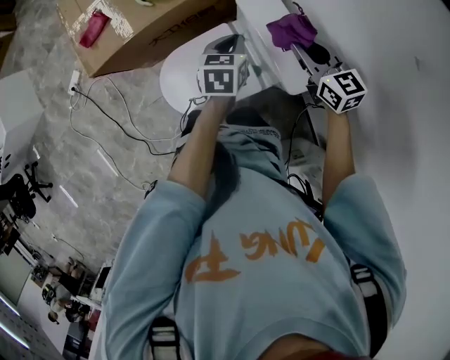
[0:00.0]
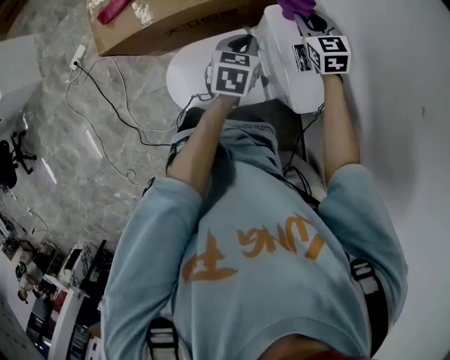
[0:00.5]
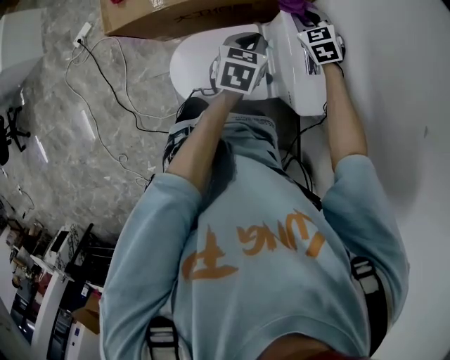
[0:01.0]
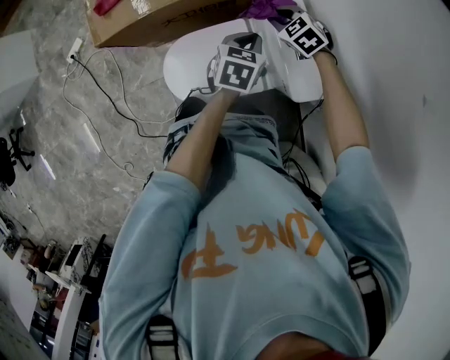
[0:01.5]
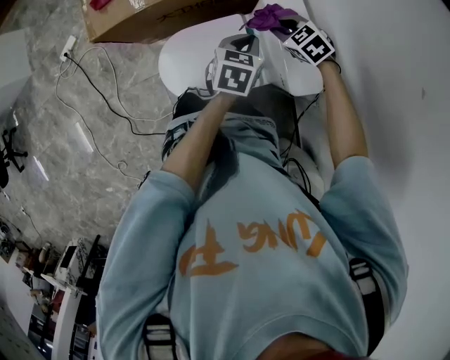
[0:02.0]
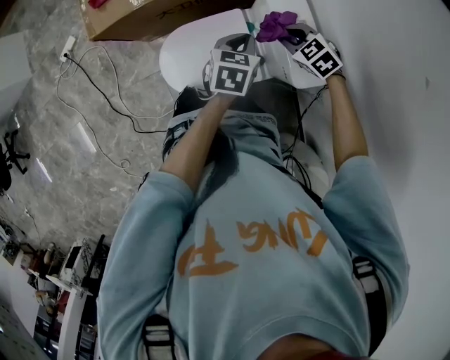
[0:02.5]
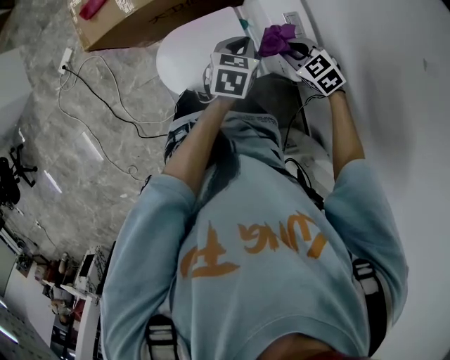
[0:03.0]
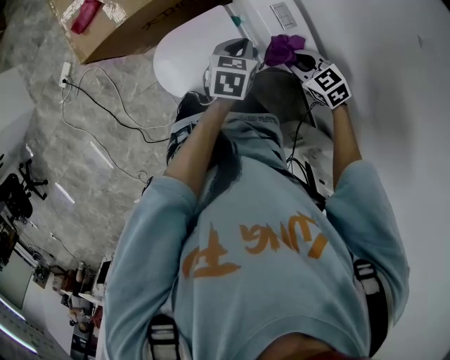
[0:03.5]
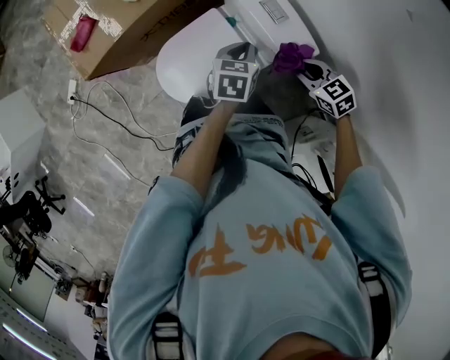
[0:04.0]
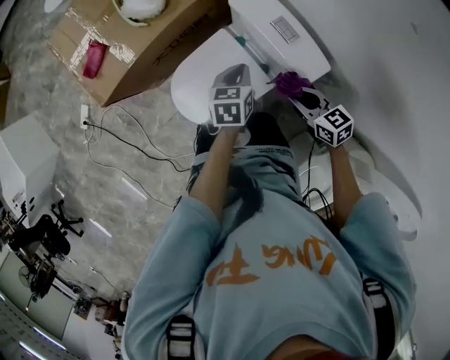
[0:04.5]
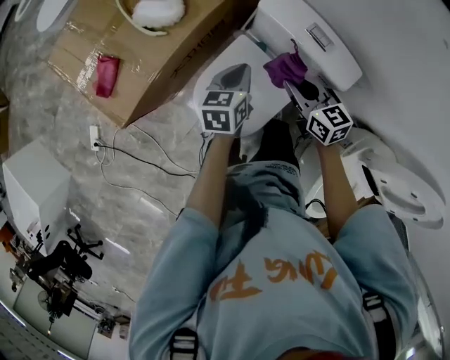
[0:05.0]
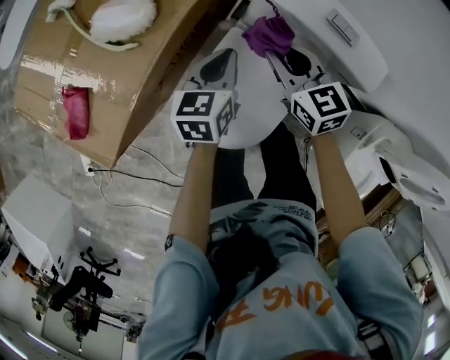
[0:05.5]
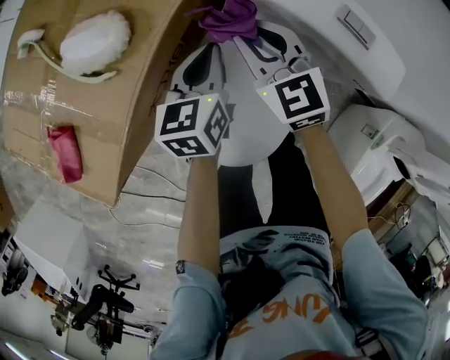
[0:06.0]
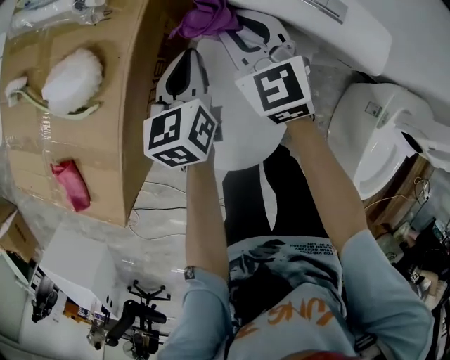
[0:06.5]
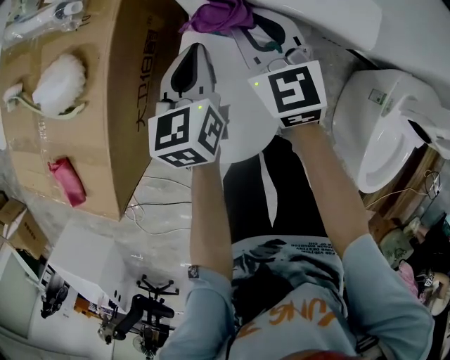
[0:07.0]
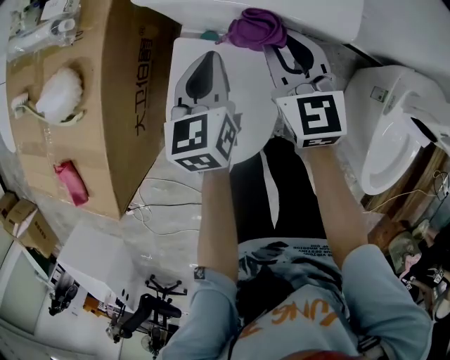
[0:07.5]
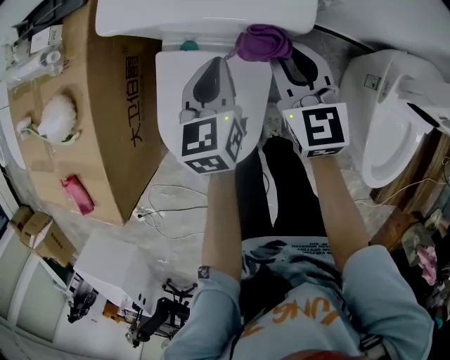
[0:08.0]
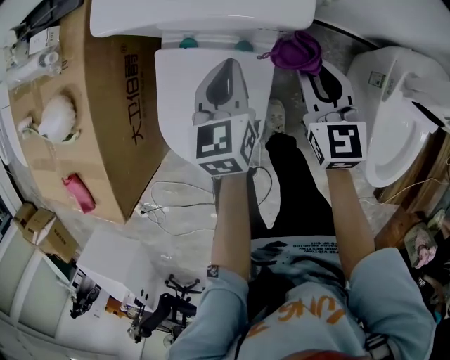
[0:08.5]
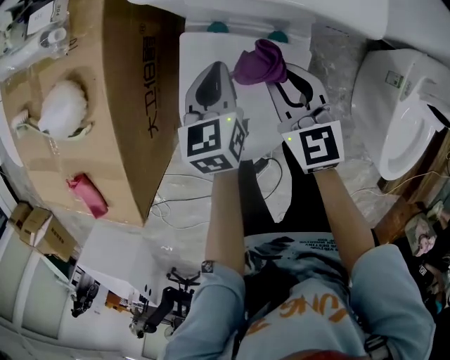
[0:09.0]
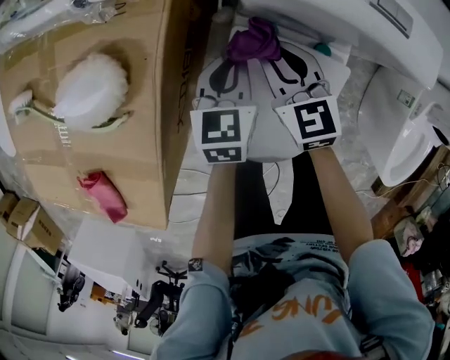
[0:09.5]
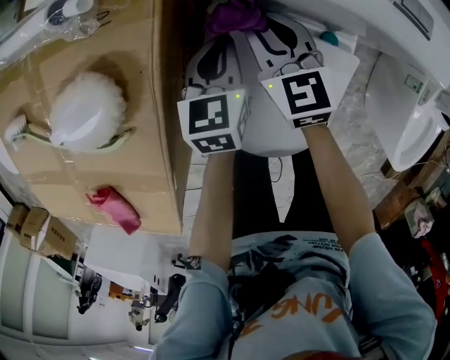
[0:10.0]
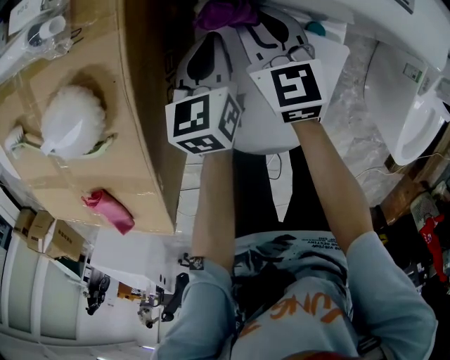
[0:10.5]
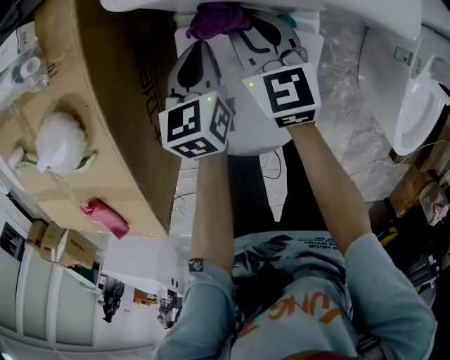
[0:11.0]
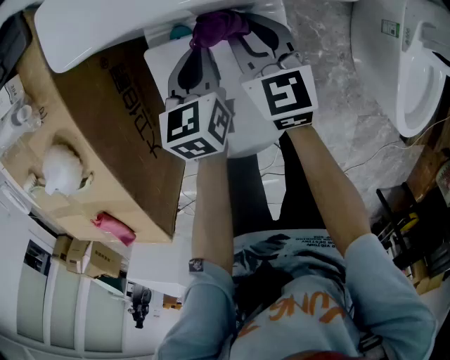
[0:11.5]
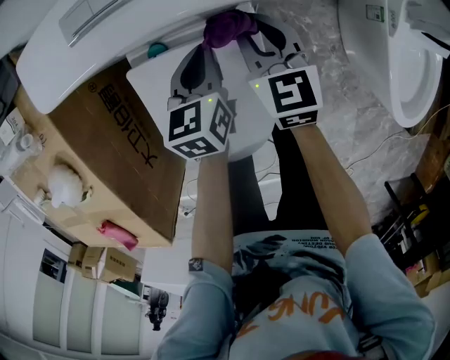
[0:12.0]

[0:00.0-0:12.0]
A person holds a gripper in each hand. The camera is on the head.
0:00.0 to 0:02.0: The right gripper travels downward and to the left by approximately 15 cm, travels forward and back again, about 15 cm each way, and tips its fingers downward by approximately 40 degrees.
0:02.0 to 0:04.0: The right gripper goes some 20 cm backward, and turns by approximately 30 degrees. Meanwhile the left gripper heads backward, covering some 10 cm.
0:04.0 to 0:06.0: The left gripper moves some 25 cm, and rotates roughly 20 degrees. The right gripper ends up roughly 35 cm from where it was, and swivels some 40 degrees.
0:06.0 to 0:08.0: The two grippers go approximately 25 cm to the right. The right gripper swivels approximately 40 degrees.
0:08.0 to 0:10.0: Both grippers travel together to the left and downward, roughly 30 cm.
0:10.0 to 0:12.0: Both grippers move to the right, approximately 30 cm. The right gripper rotates roughly 20 degrees.

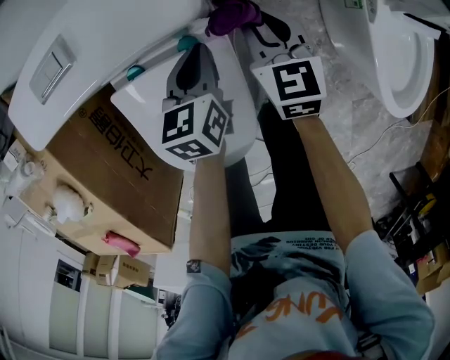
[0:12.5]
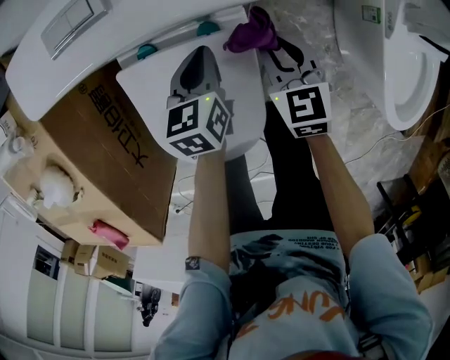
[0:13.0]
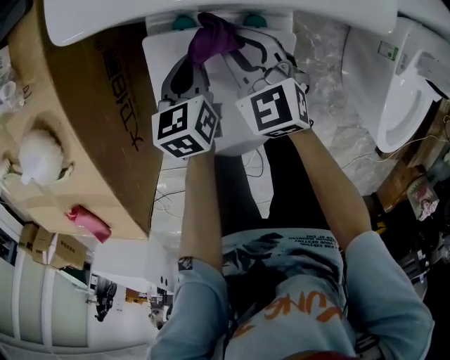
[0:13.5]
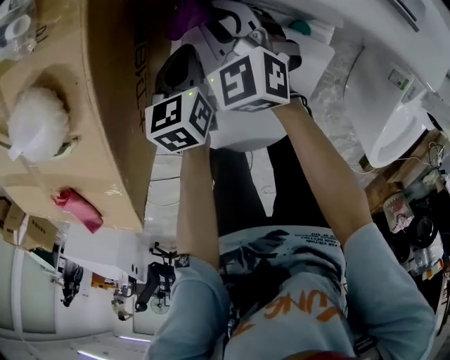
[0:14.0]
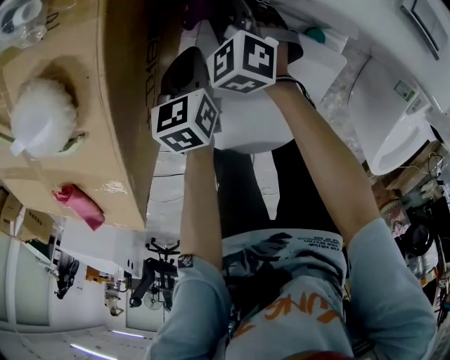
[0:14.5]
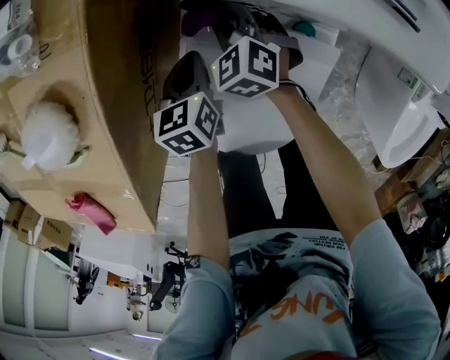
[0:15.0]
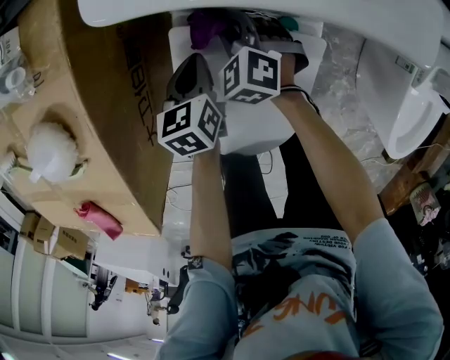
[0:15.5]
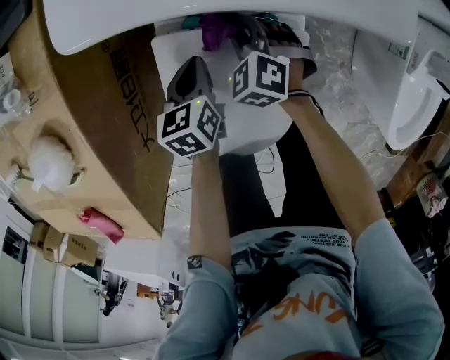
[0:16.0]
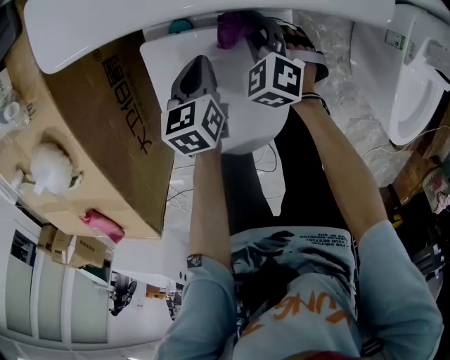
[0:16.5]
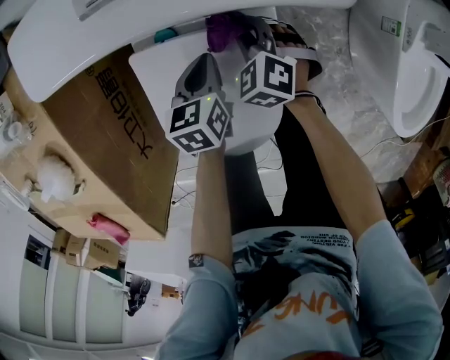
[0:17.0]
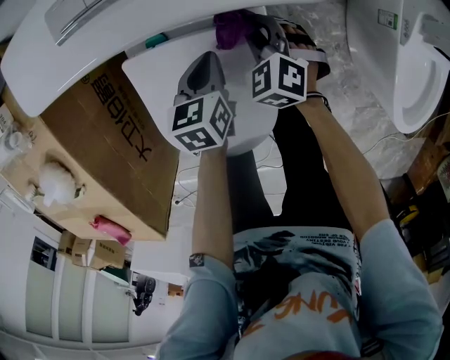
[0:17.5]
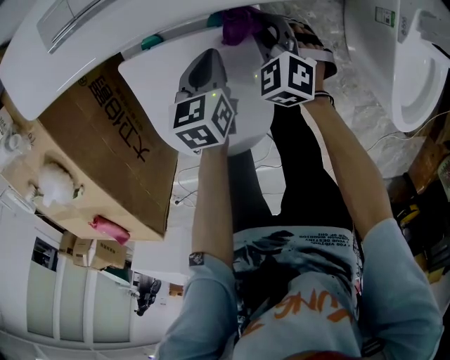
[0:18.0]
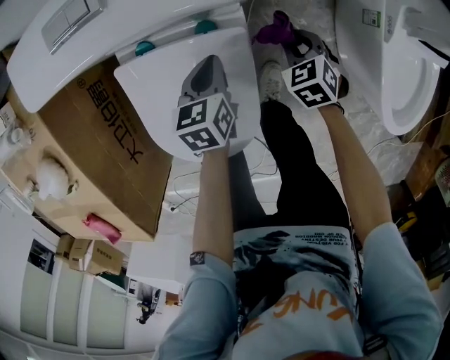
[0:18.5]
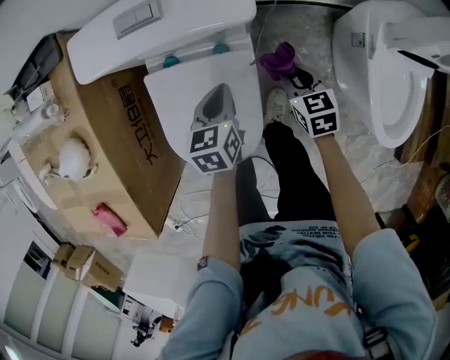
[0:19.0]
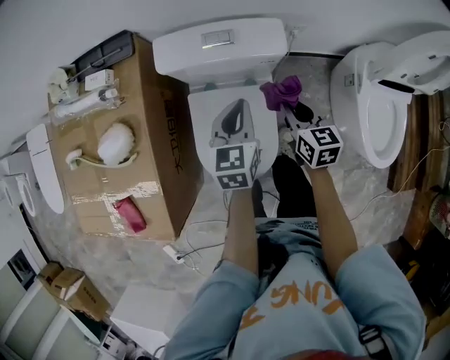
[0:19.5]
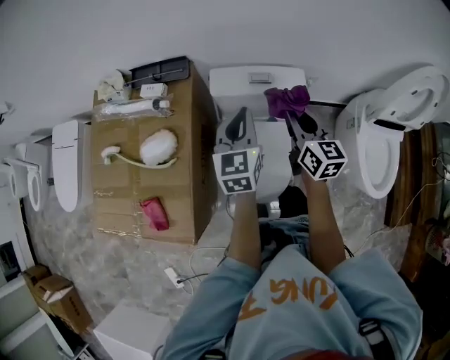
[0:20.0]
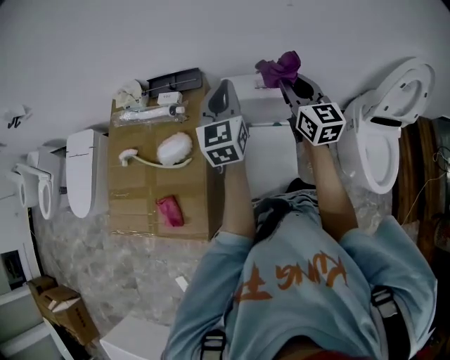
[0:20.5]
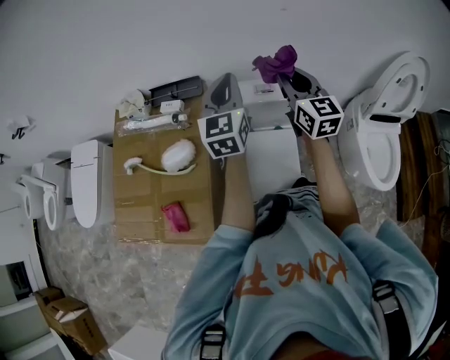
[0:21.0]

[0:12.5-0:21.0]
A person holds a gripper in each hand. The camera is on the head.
0:12.5 to 0:14.5: The left gripper moves about 35 cm, and swivels roughly 30 degrees. The right gripper shifts by roughly 40 cm, and rolls counterclockwise, seen from behind, by about 50 degrees.
0:14.5 to 0:16.5: The two grippers go some 20 cm to the right.
0:16.5 to 0:19.0: The two grippers go some 20 cm to the right and upward. The right gripper rolls clockwise, seen from behind, by roughly 50 degrees.
0:19.0 to 0:21.0: Both grippers move upward and to the left, about 60 cm. The right gripper tips its fingers upward by approximately 50 degrees, while the left gripper tilts its fingers some 40 degrees upward.

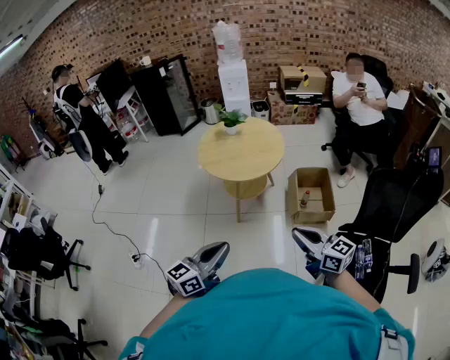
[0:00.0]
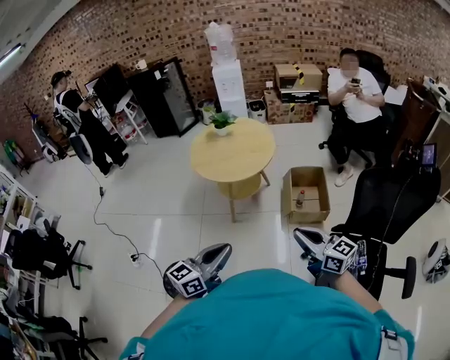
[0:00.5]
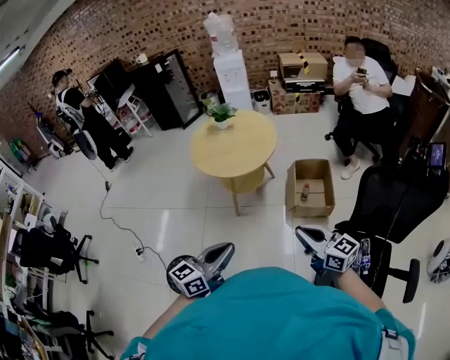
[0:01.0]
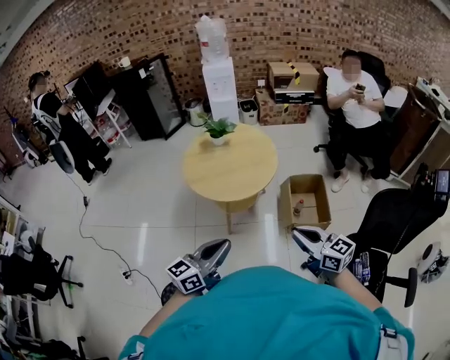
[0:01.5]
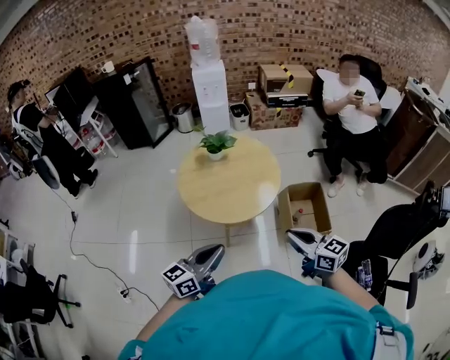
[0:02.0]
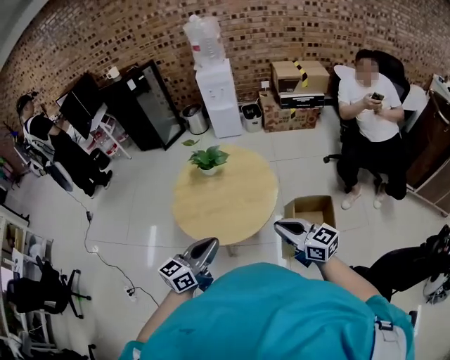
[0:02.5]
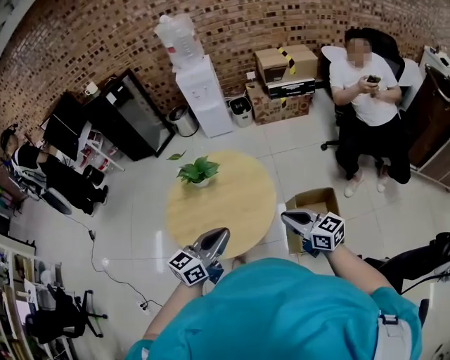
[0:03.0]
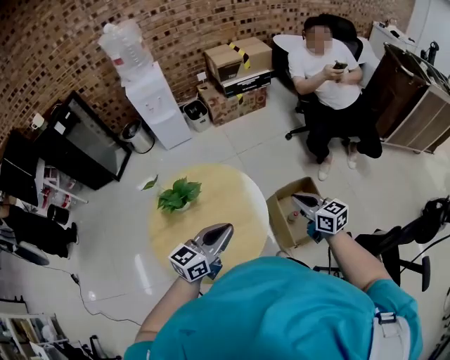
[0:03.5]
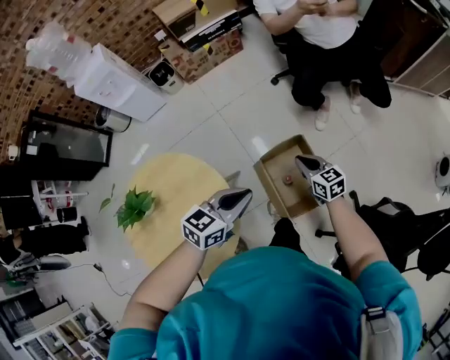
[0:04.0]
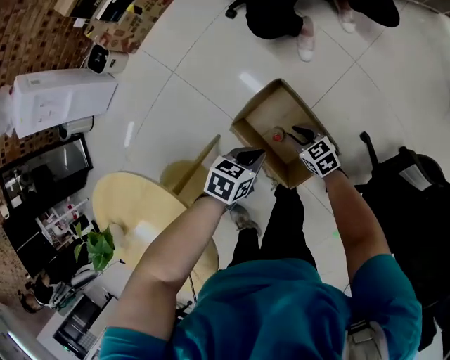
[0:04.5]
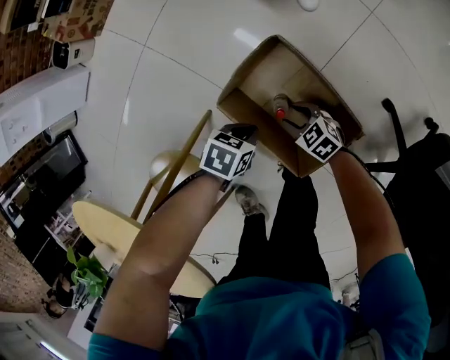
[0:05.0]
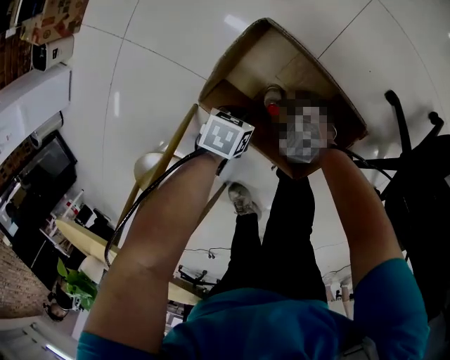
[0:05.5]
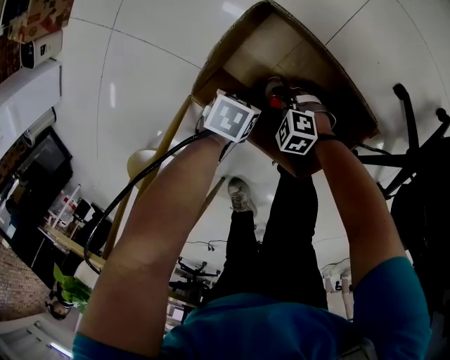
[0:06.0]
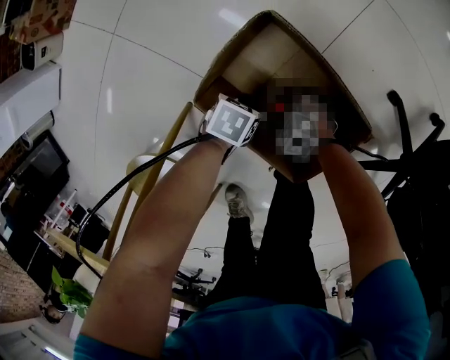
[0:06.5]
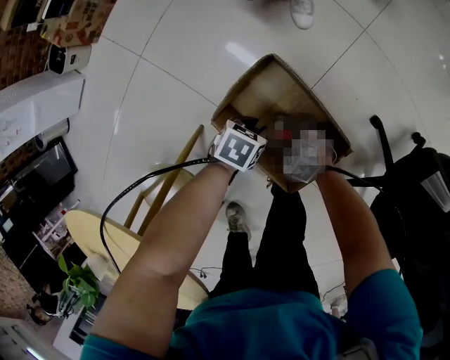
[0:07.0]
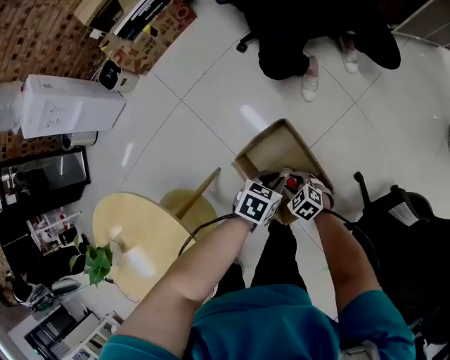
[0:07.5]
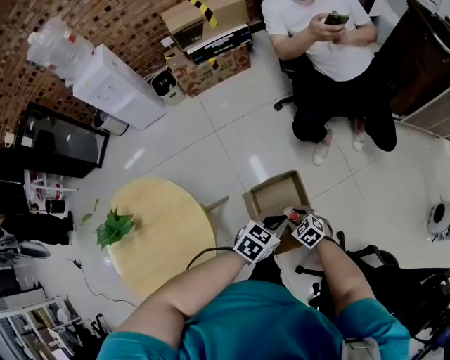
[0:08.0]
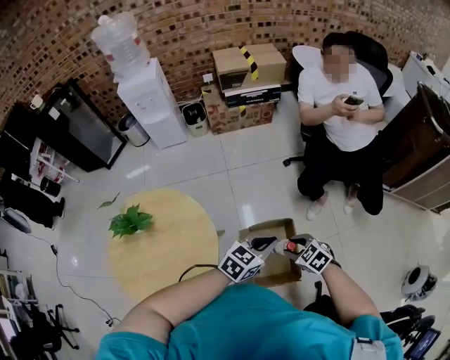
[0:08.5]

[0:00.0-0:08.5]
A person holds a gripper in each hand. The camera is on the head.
0:00.0 to 0:02.0: The two grippers go approximately 40 cm forward and to the left.
0:02.0 to 0:04.0: The two grippers travel together, roughly 90 cm. The right gripper turns by about 30 degrees, while the left gripper tips its fingers downward by some 30 degrees.
0:04.0 to 0:06.5: The grippers both shift downward by about 90 cm. The right gripper angles its fingers downward, by about 30 degrees, and opens. The left gripper angles its fingers downward, by about 50 degrees, and opens up.
0:06.5 to 0:08.5: Both grippers move upward, some 1 m. The left gripper tilts its fingers some 40 degrees upward, and closes its fingers. Meanwhile the right gripper turns by approximately 30 degrees.
